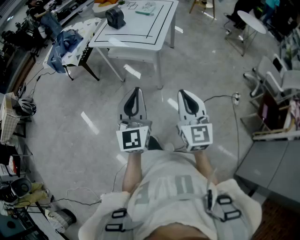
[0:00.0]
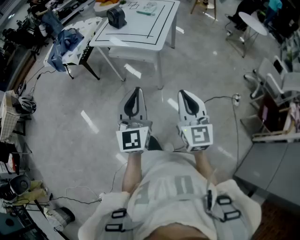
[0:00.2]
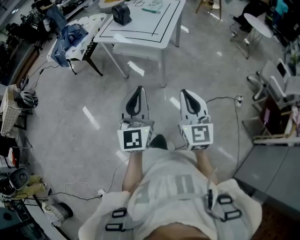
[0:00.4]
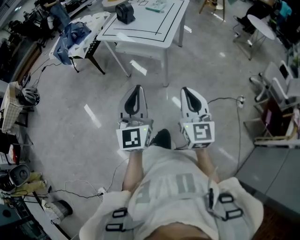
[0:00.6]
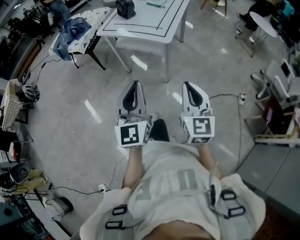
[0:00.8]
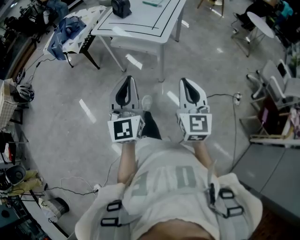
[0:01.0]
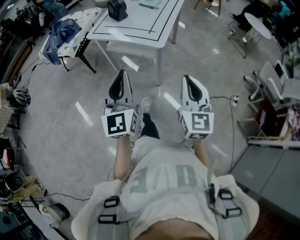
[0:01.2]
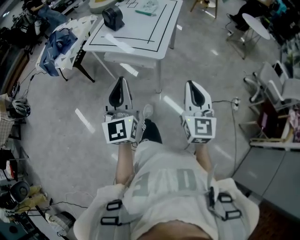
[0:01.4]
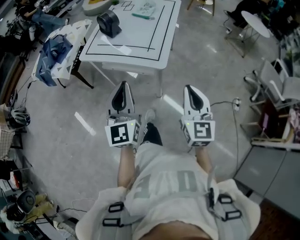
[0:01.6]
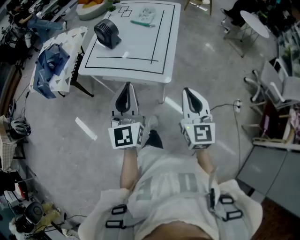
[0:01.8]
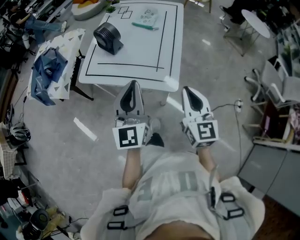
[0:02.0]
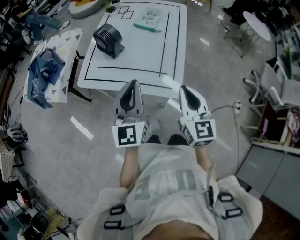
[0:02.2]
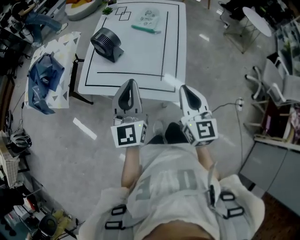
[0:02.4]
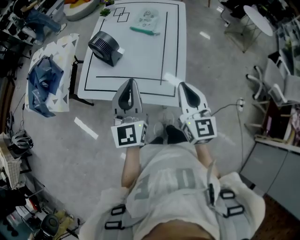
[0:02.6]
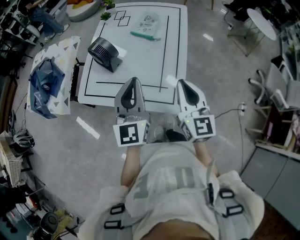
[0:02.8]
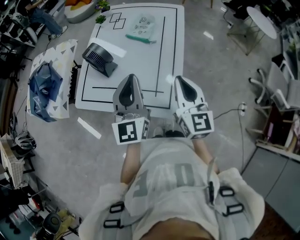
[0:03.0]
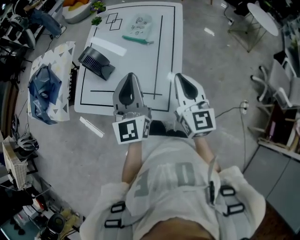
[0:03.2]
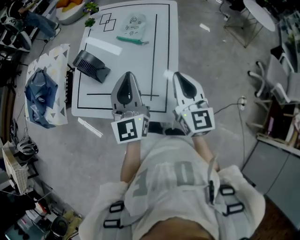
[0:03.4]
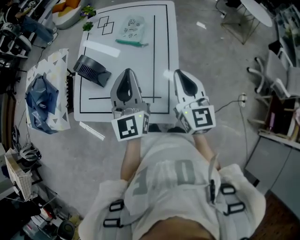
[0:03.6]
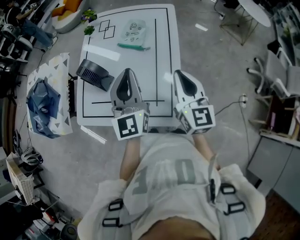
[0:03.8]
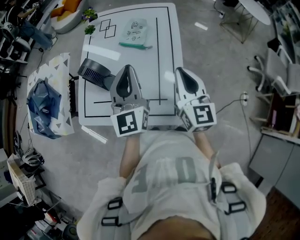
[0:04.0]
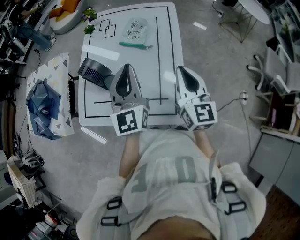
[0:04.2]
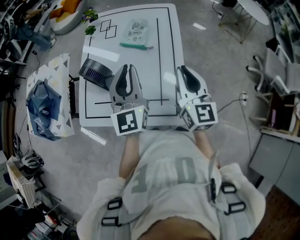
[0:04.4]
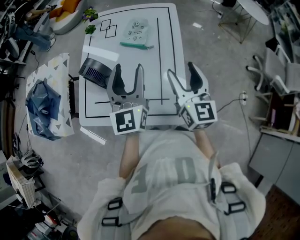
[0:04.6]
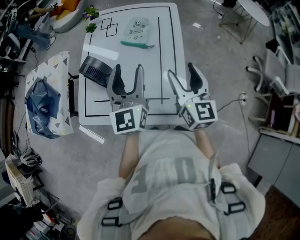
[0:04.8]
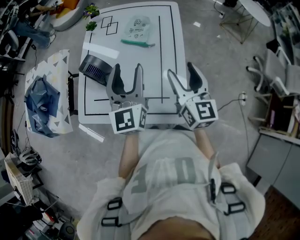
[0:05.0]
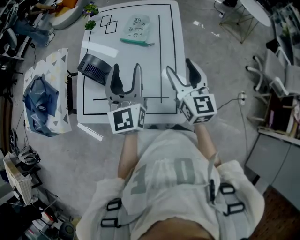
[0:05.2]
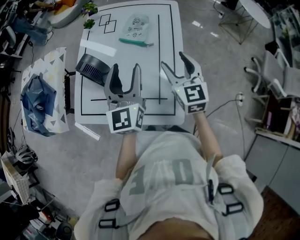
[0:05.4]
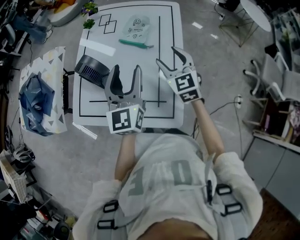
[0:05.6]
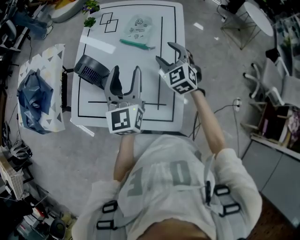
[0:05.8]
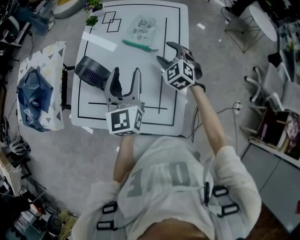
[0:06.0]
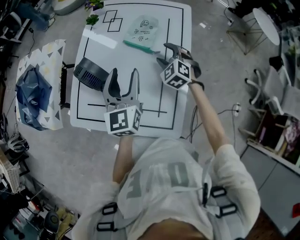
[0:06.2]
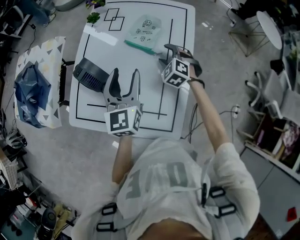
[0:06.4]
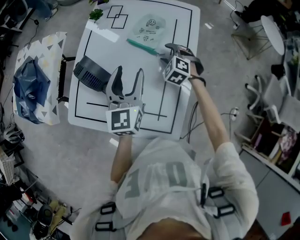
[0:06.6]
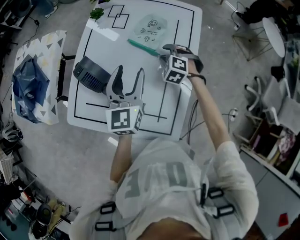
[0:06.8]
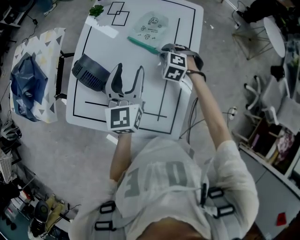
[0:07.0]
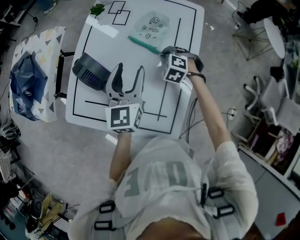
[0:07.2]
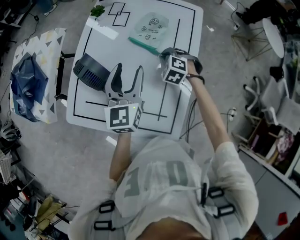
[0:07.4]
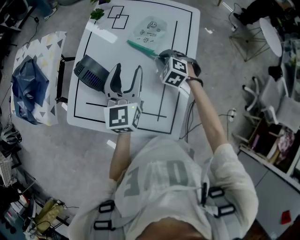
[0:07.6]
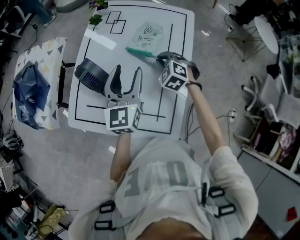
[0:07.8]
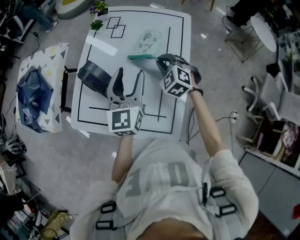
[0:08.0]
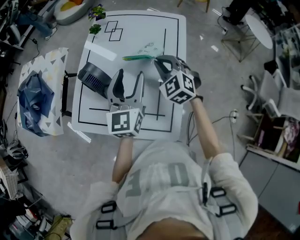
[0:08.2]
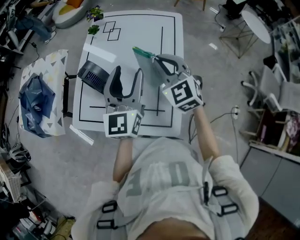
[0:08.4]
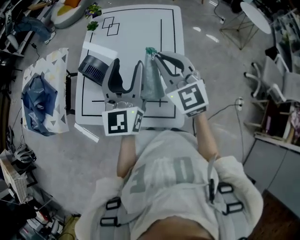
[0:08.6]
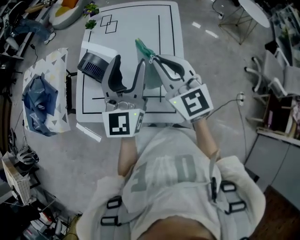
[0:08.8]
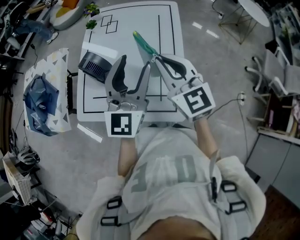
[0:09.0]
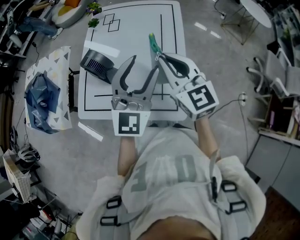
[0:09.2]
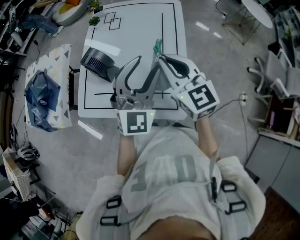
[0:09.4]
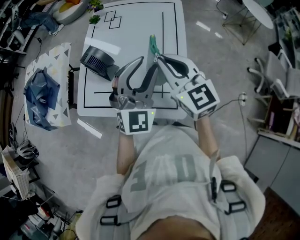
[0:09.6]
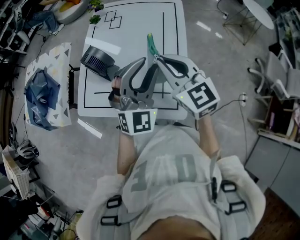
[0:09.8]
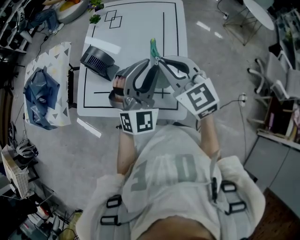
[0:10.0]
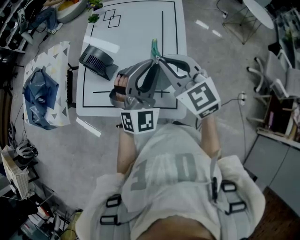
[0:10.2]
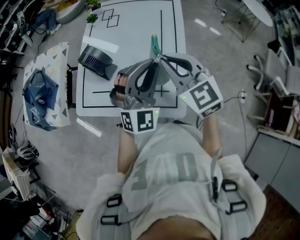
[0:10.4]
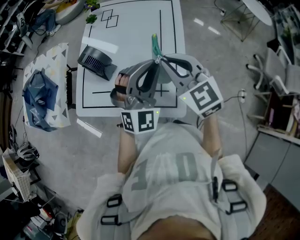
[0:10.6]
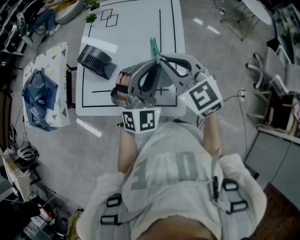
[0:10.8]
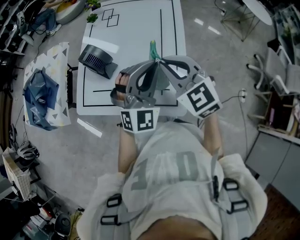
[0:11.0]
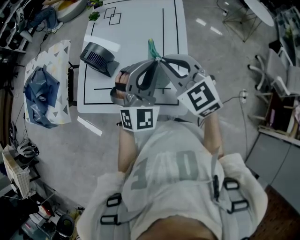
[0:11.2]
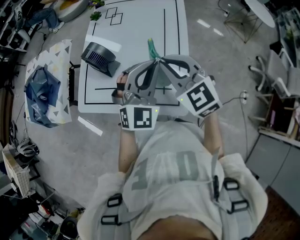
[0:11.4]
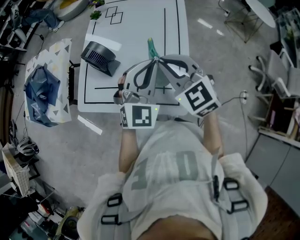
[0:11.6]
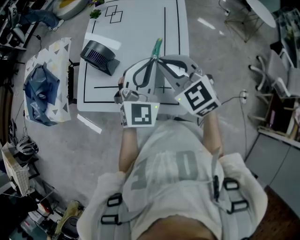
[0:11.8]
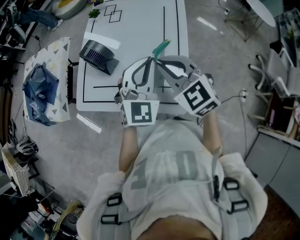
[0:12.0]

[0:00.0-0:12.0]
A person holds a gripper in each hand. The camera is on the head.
0:00.0 to 0:01.6: The grippers both shift forward by roughly 25 cm.
0:01.6 to 0:03.0: Both grippers travel together forward, roughly 35 cm.
0:03.0 to 0:04.4: The two grippers go about 10 cm forward.
0:04.4 to 0:06.0: The left gripper travels downward and forward by some 10 cm, and opens its fingers. The right gripper travels forward and downward by roughly 25 cm, points its fingers about 30 degrees further downward, and opens up.
0:06.0 to 0:07.6: The right gripper goes about 10 cm downward, turns by roughly 30 degrees, and closes; the left gripper heads forward, covering about 5 cm.
0:07.6 to 0:09.0: The right gripper heads upward and backward, covering roughly 35 cm, and points its fingers roughly 50 degrees further upward, while the left gripper goes some 20 cm backward and upward, and turns by about 30 degrees.
0:09.0 to 0:10.4: The left gripper moves downward, about 5 cm, turns by some 40 degrees, and closes.
0:10.4 to 0:12.0: The left gripper rotates some 20 degrees.

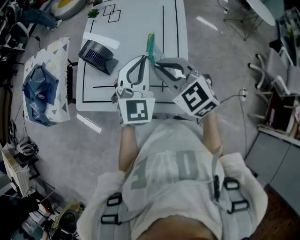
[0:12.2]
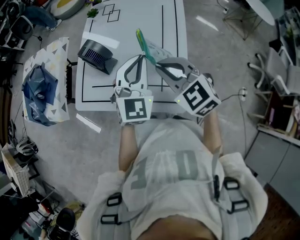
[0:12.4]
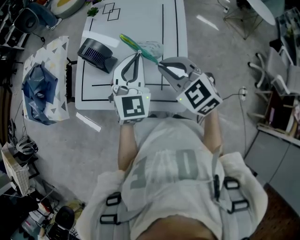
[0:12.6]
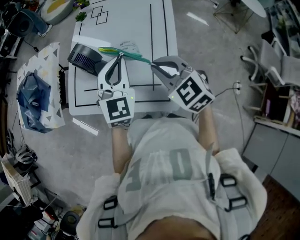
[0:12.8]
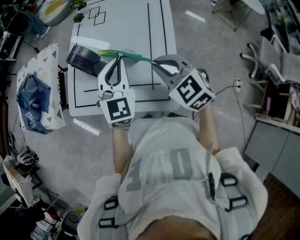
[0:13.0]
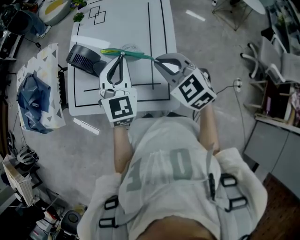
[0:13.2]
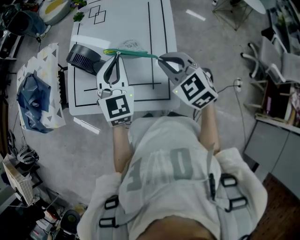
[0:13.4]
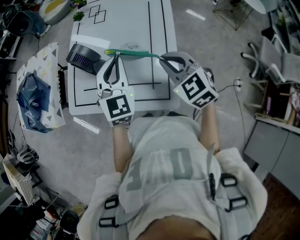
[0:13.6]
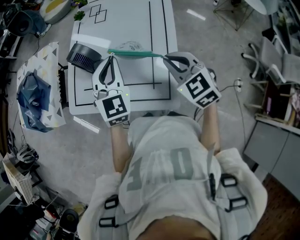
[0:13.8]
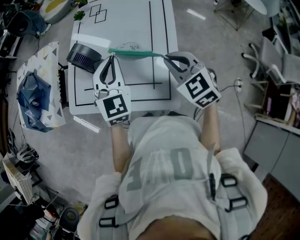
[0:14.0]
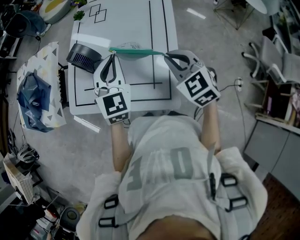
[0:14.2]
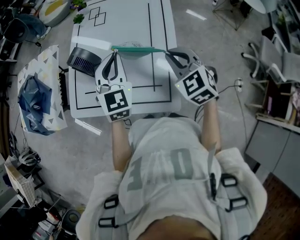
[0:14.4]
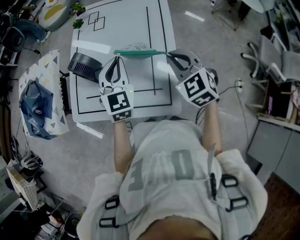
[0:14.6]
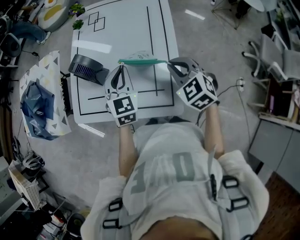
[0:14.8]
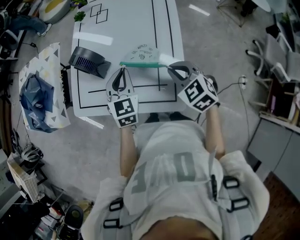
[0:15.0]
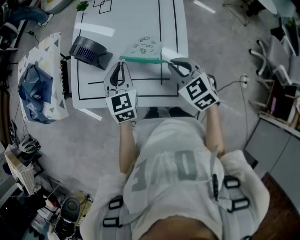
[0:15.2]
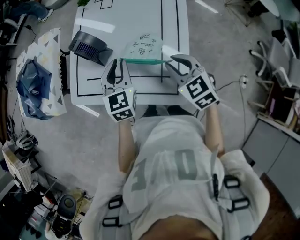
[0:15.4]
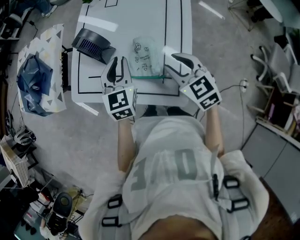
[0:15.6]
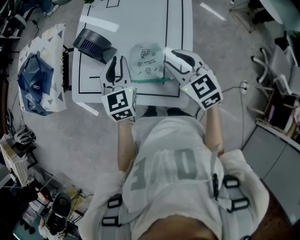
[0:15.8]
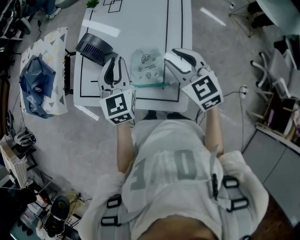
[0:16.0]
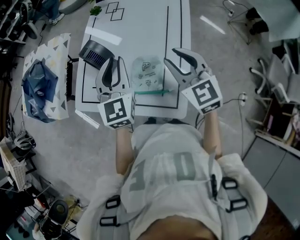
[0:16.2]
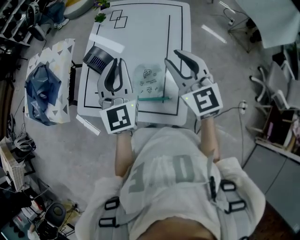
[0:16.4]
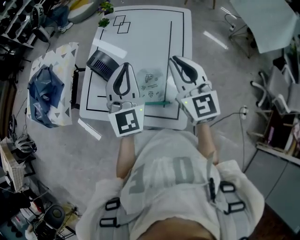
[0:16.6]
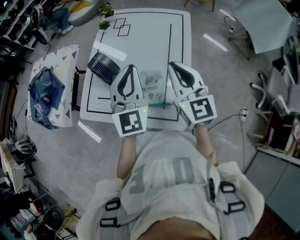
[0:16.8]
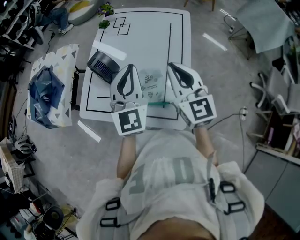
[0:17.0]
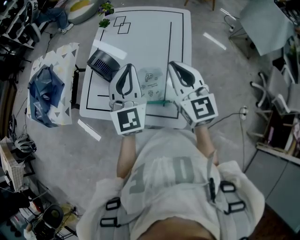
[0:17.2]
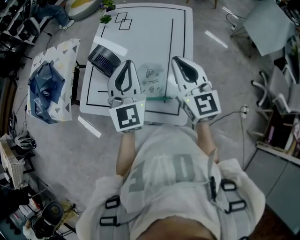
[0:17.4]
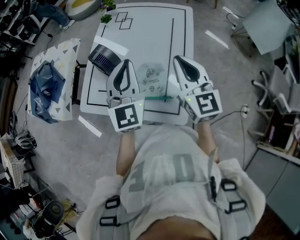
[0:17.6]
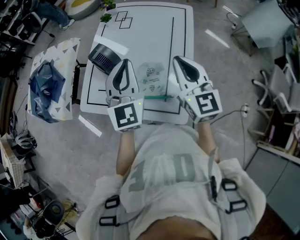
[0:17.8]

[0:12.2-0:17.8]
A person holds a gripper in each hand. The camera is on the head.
0:12.2 to 0:13.6: The right gripper travels to the right by about 5 cm. The left gripper ends up some 5 cm from where it was.
0:13.6 to 0:15.0: The grippers both shift downward by some 10 cm.
0:15.0 to 0:16.4: The grippers both shift upward by about 15 cm. The left gripper rotates roughly 30 degrees. The right gripper points its fingers approximately 30 degrees further upward, and opens up.
0:16.4 to 0:17.8: The right gripper closes.

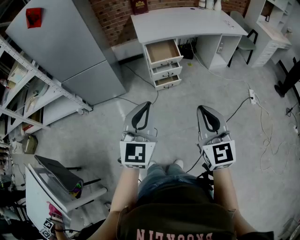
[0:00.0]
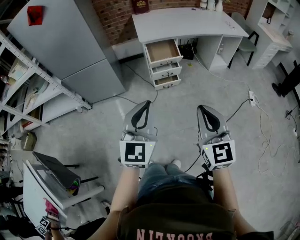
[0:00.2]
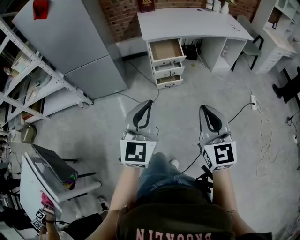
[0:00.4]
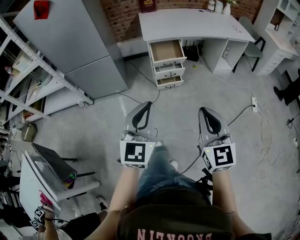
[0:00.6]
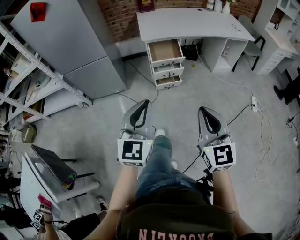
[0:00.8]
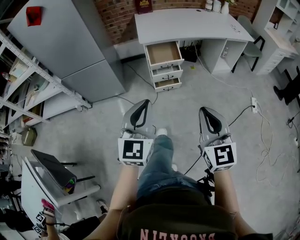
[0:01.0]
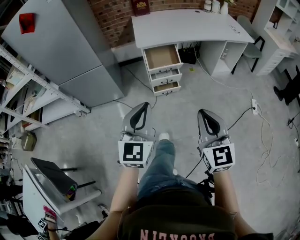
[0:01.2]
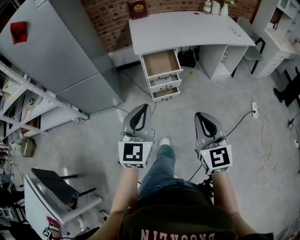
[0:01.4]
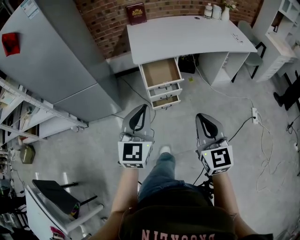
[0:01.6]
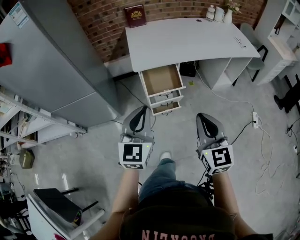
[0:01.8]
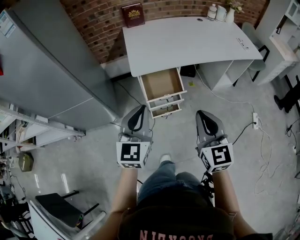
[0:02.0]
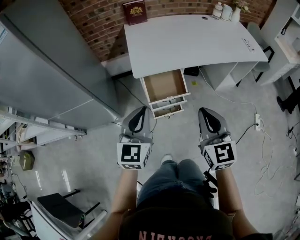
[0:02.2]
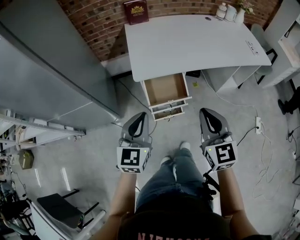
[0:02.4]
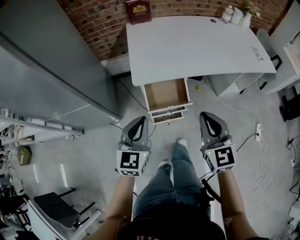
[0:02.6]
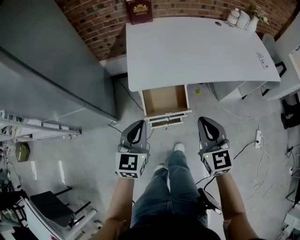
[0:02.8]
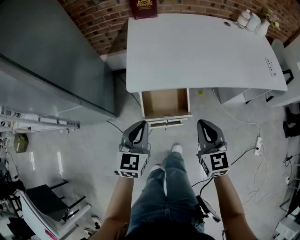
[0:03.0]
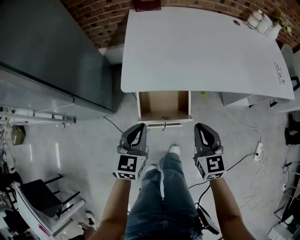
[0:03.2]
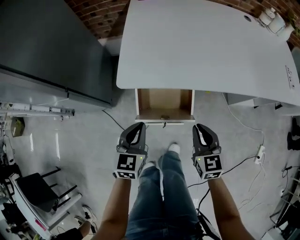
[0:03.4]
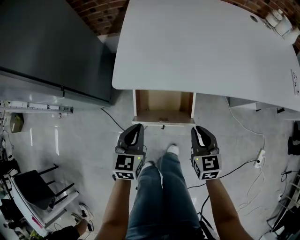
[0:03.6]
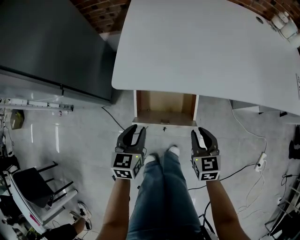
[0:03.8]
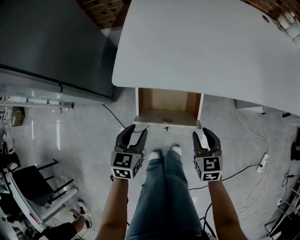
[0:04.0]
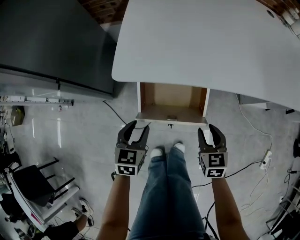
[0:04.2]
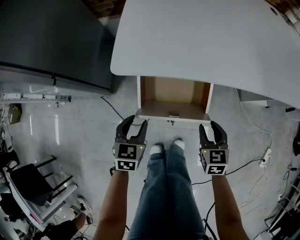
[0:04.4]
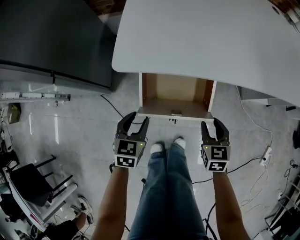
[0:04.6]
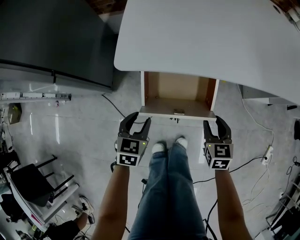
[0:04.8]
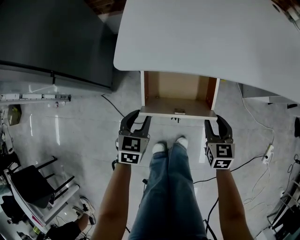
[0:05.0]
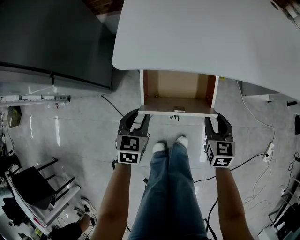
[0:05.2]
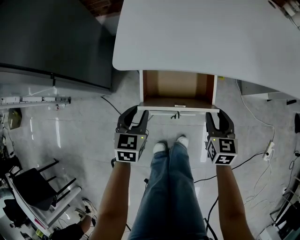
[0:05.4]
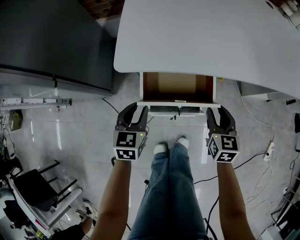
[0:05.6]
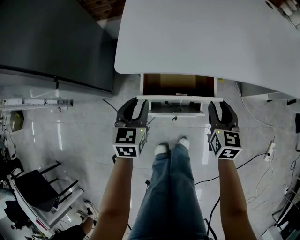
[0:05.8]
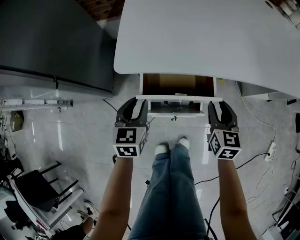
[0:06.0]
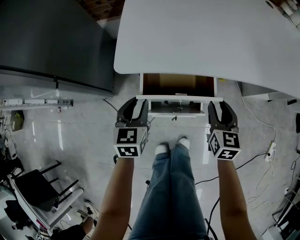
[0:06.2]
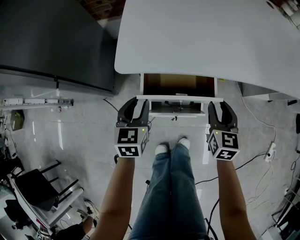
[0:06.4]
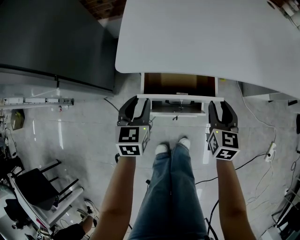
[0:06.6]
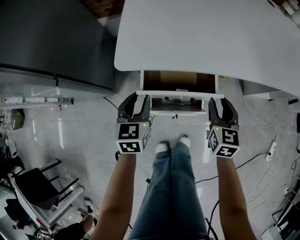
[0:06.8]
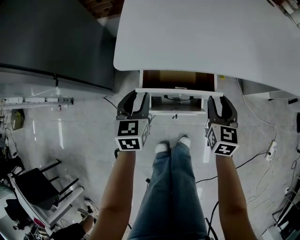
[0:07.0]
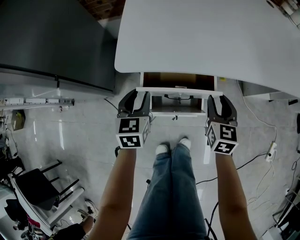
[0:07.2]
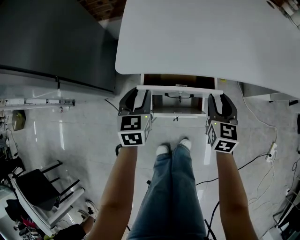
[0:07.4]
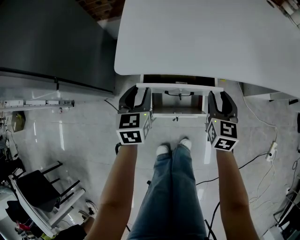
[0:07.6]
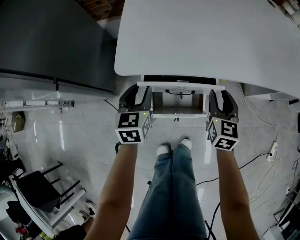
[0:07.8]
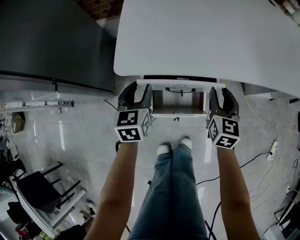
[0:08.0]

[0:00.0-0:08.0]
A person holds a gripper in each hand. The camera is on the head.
0:00.0 to 0:01.6: The grippers both shift forward by roughly 25 cm.
0:01.6 to 0:03.2: The grippers both shift forward and downward by approximately 40 cm. The left gripper turns by approximately 20 degrees.
0:03.2 to 0:04.8: Both grippers move downward, about 25 cm. The right gripper opens up. Meanwhile the left gripper opens its fingers.
0:04.8 to 0:06.4: Both grippers travel together upward and forward, about 10 cm.
0:06.4 to 0:08.0: Both grippers travel together forward, some 5 cm.
